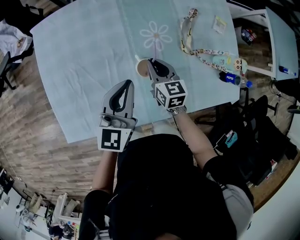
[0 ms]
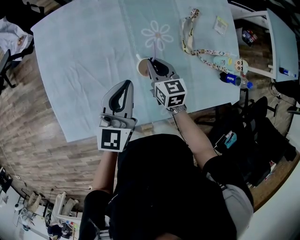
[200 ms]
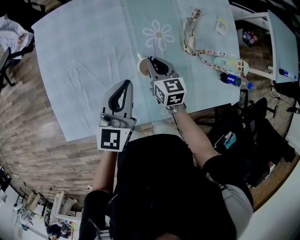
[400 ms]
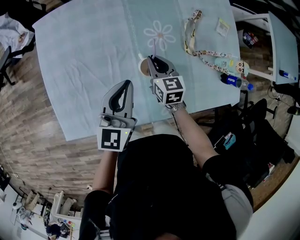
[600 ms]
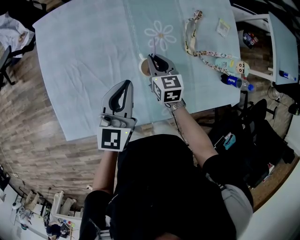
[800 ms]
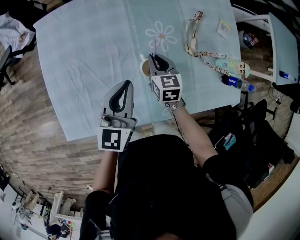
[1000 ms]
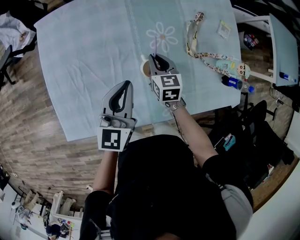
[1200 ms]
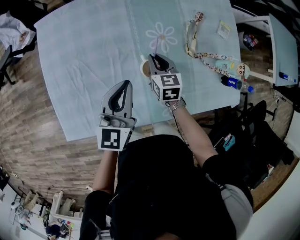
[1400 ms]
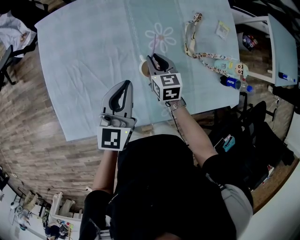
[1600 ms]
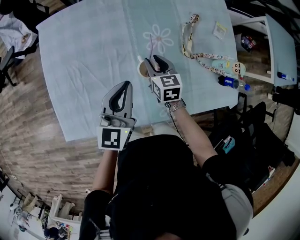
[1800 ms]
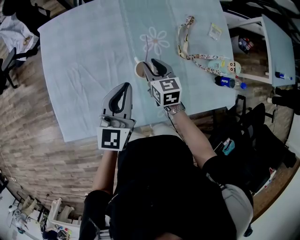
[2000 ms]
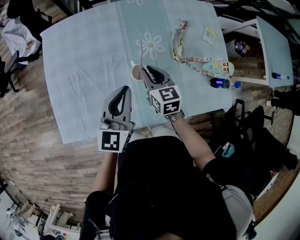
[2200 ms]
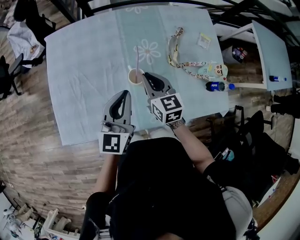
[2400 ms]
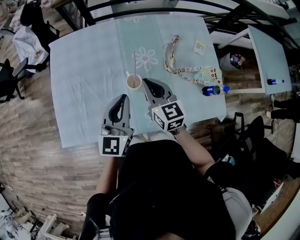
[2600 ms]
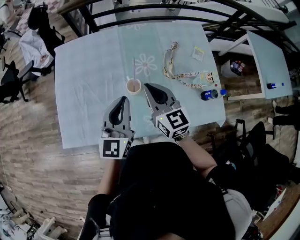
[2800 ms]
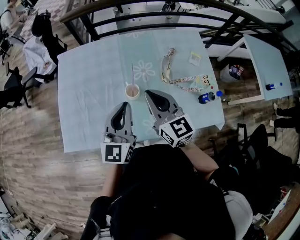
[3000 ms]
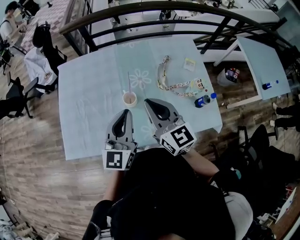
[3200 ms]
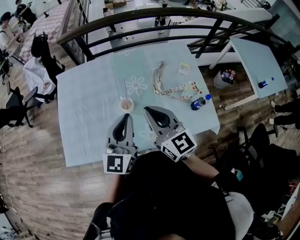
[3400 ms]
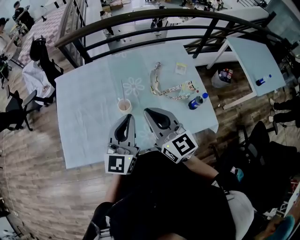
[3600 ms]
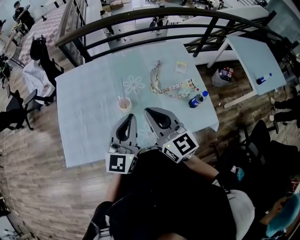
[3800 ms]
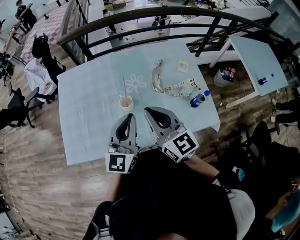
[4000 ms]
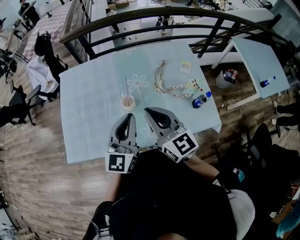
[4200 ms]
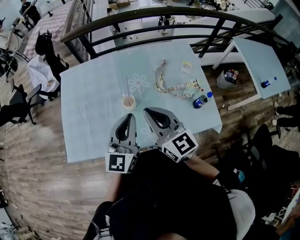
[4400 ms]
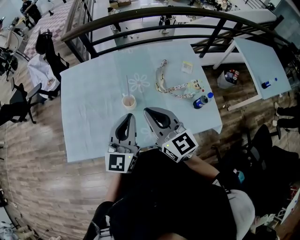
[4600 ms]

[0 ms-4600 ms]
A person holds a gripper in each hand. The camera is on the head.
0 ms to 1600 ms: The grippers make only small movements.
1600 ms to 3000 ms: The right gripper is displaced upward and backward by approximately 30 cm, and points its fingers about 30 degrees further upward; the left gripper travels upward, backward and to the right by approximately 20 cm.
3000 ms to 4600 ms: The right gripper travels backward by approximately 5 cm, while the left gripper changes place by about 5 cm.

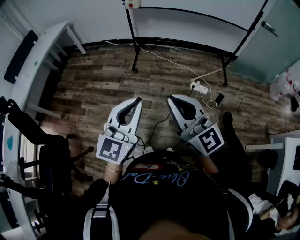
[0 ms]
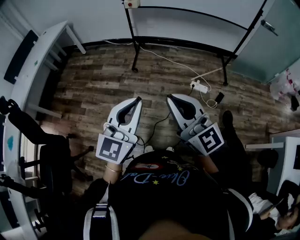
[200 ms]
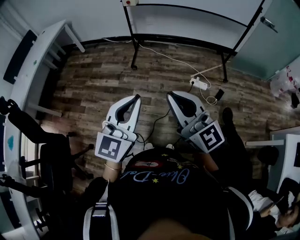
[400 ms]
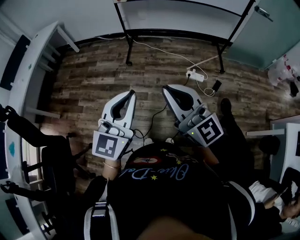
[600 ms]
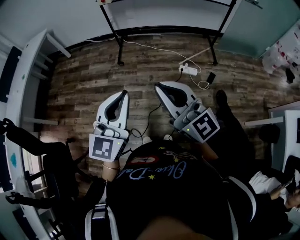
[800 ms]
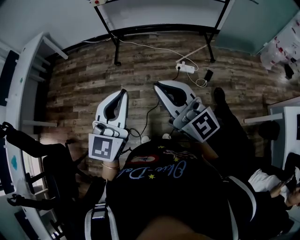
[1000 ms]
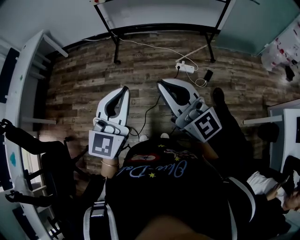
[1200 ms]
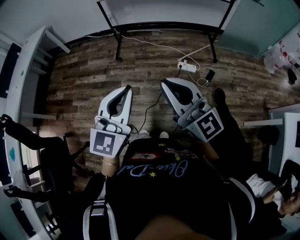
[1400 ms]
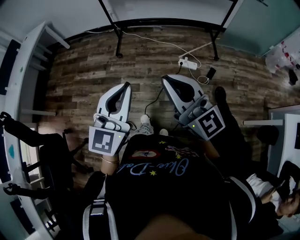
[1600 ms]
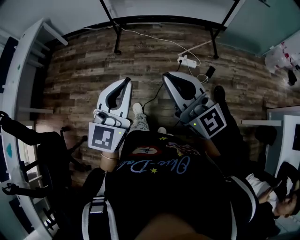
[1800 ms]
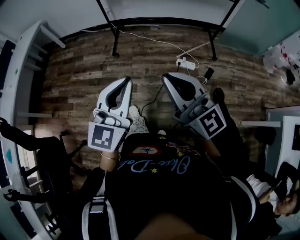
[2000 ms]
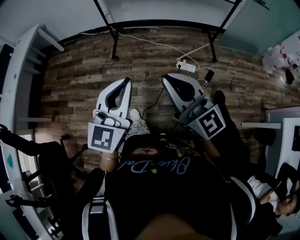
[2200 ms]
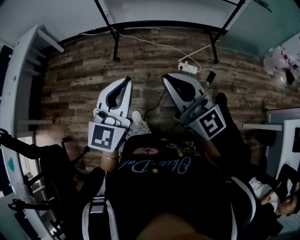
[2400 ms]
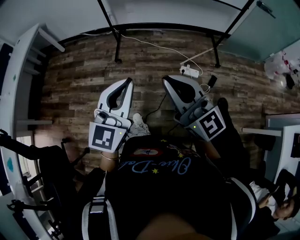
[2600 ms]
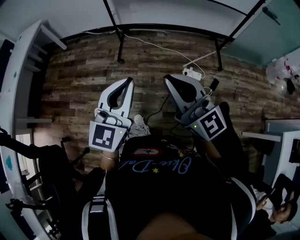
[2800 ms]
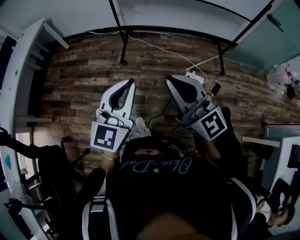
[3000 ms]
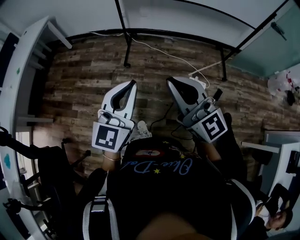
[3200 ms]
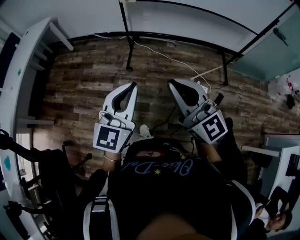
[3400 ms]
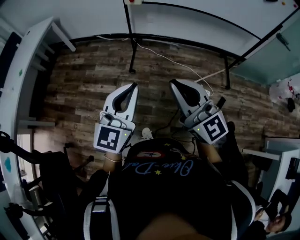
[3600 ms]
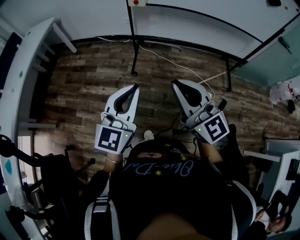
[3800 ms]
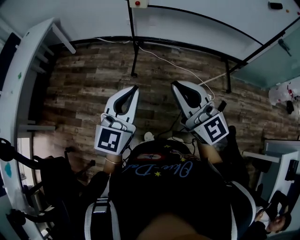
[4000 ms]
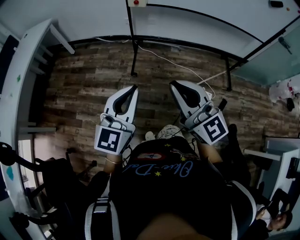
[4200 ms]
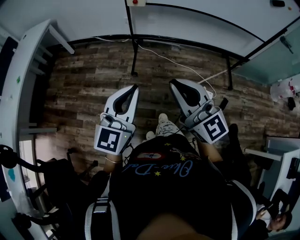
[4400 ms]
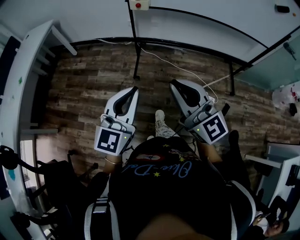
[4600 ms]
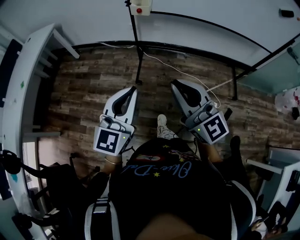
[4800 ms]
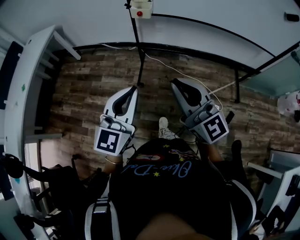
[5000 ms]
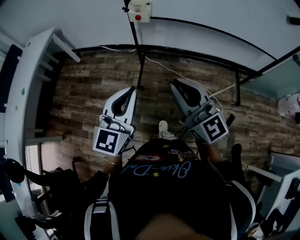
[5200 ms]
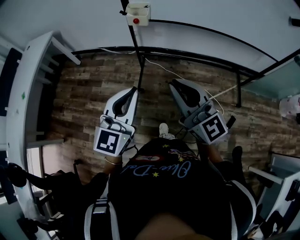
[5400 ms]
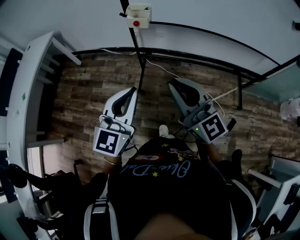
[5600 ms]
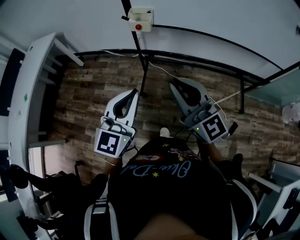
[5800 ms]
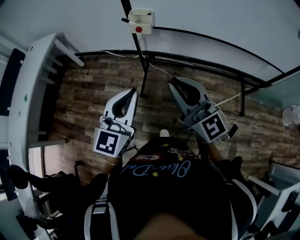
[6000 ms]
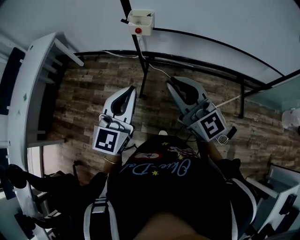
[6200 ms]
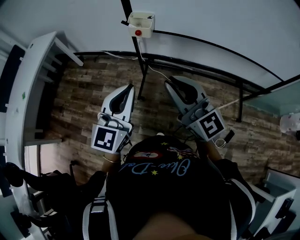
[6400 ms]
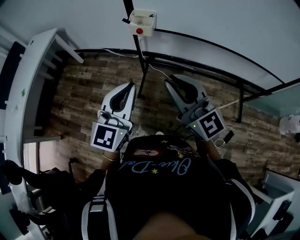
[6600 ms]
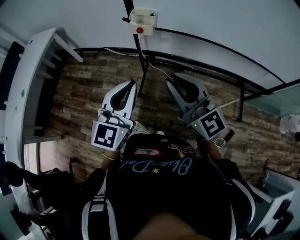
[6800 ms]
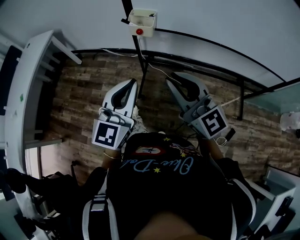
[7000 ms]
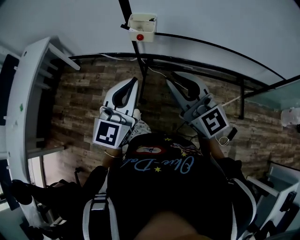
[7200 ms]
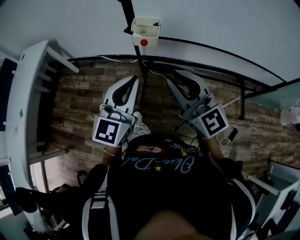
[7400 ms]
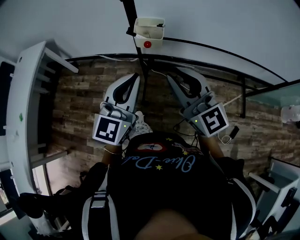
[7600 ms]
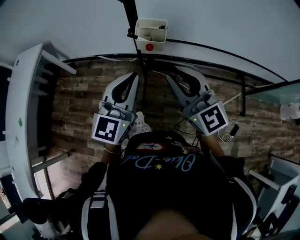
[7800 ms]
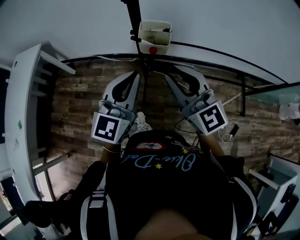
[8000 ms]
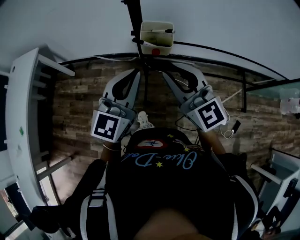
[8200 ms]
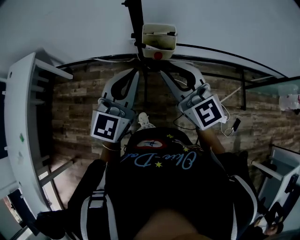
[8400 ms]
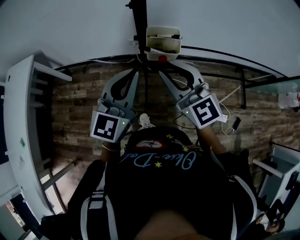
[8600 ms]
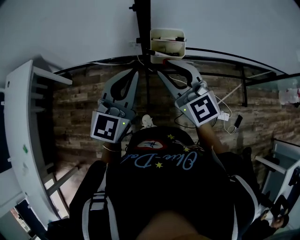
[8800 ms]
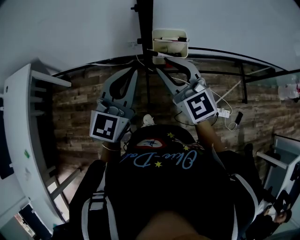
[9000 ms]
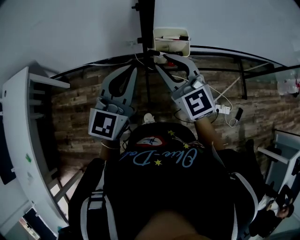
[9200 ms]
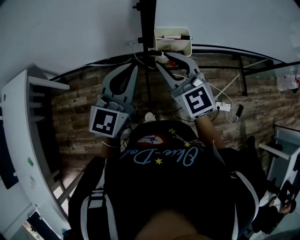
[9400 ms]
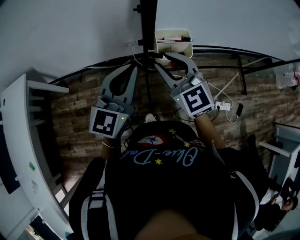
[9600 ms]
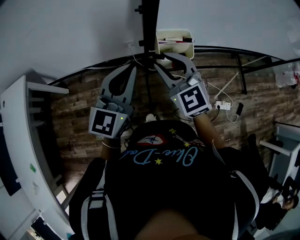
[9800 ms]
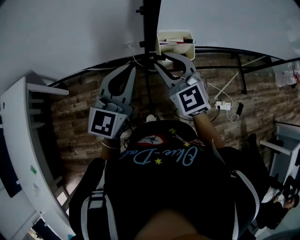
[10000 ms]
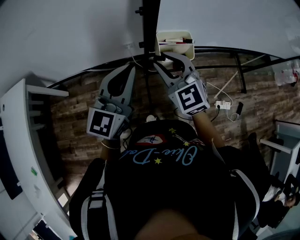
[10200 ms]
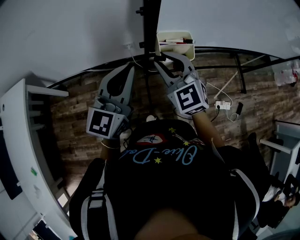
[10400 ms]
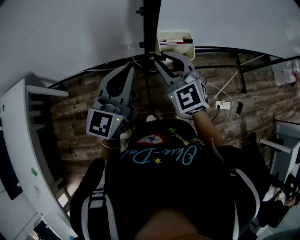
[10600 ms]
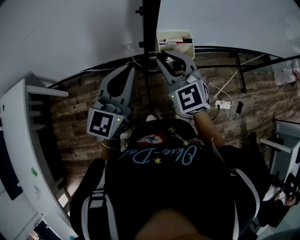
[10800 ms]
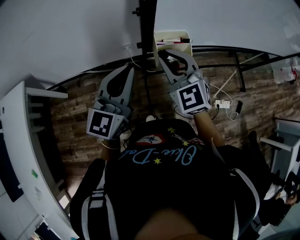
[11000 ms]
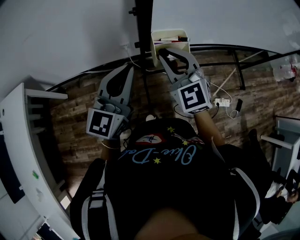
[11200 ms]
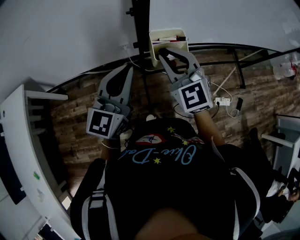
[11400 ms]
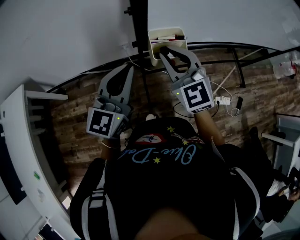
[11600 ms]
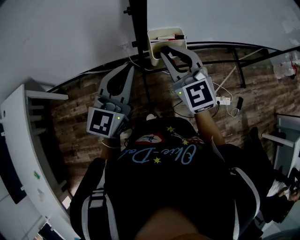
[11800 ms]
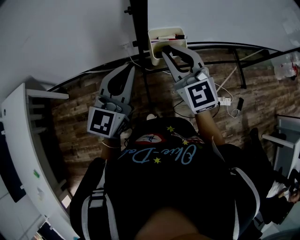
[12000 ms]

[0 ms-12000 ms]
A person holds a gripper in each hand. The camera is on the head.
0 ms to 1600 ms: The grippers both shift to the right by approximately 10 cm.
1600 ms to 3000 ms: The grippers both shift forward and to the left by approximately 20 cm.
3000 ms to 4400 ms: The two grippers go some 15 cm forward and to the left.
4400 ms to 6000 ms: The grippers both shift forward by about 20 cm.
6000 ms to 7600 ms: Both grippers travel together forward, roughly 15 cm.
7600 ms to 9000 ms: Both grippers travel together forward and to the left, some 15 cm. The right gripper rotates some 20 degrees.
9000 ms to 10400 ms: The left gripper changes place by roughly 5 cm; the right gripper goes roughly 5 cm forward.
10400 ms to 12000 ms: The right gripper changes place by about 5 cm.

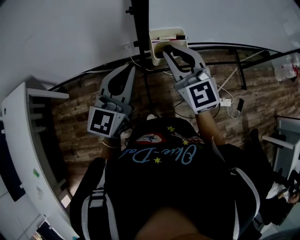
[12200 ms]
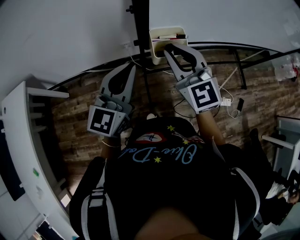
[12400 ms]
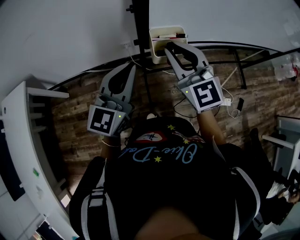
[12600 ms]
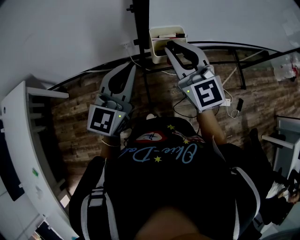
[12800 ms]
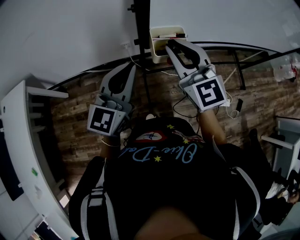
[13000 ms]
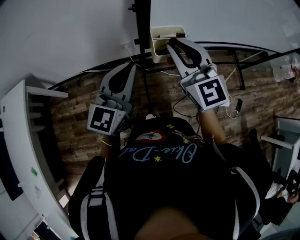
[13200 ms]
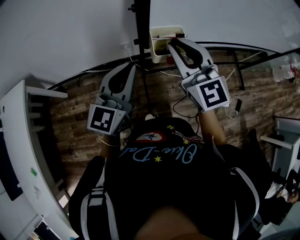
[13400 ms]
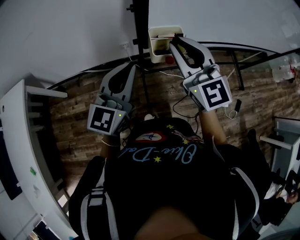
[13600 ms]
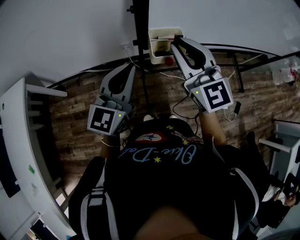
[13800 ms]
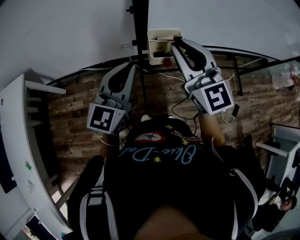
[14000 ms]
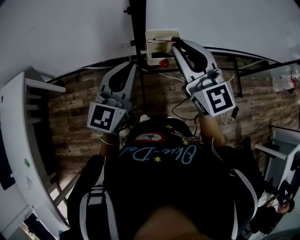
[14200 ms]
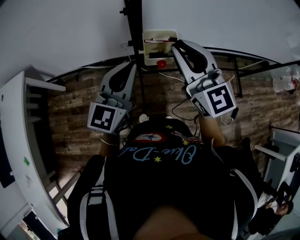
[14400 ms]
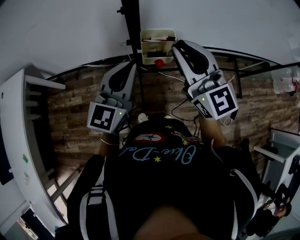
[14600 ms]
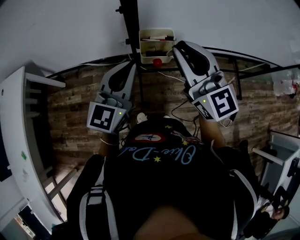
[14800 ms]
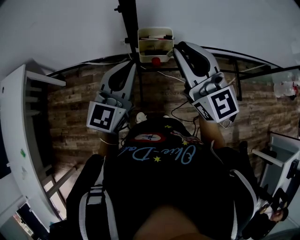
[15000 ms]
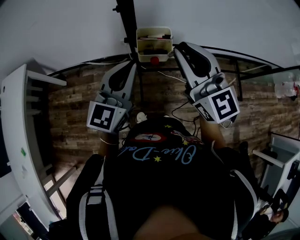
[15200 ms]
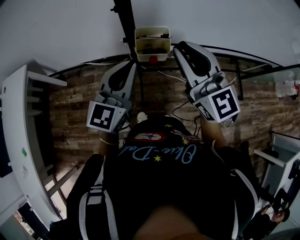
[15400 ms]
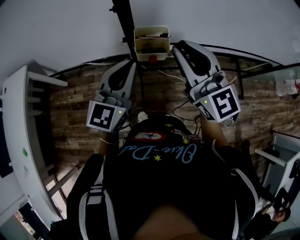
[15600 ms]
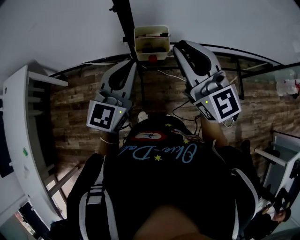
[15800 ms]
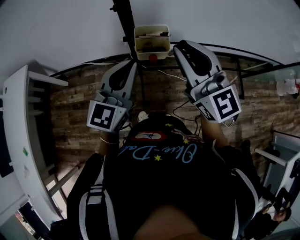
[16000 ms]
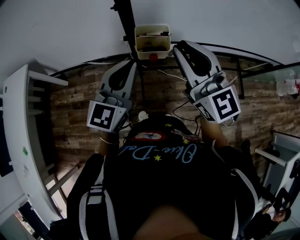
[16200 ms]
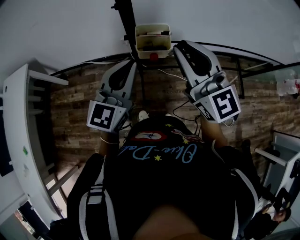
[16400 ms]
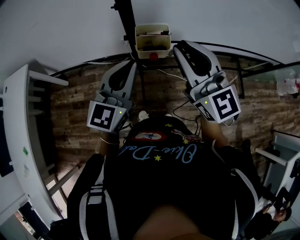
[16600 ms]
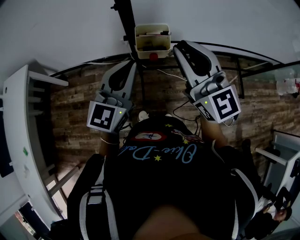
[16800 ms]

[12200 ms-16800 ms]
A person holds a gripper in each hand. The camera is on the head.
12200 ms to 13800 ms: The right gripper travels upward by some 5 cm.
13800 ms to 15200 ms: Both grippers move to the right, about 5 cm.
15200 ms to 16800 ms: The grippers make only small movements.

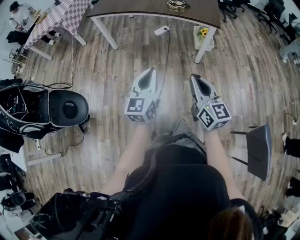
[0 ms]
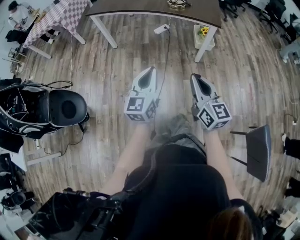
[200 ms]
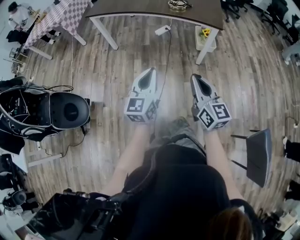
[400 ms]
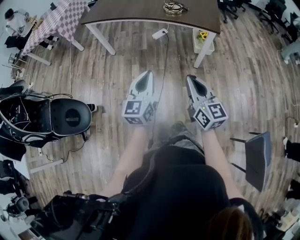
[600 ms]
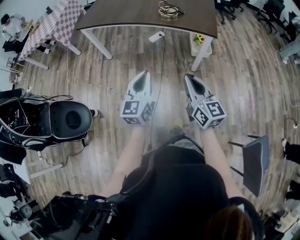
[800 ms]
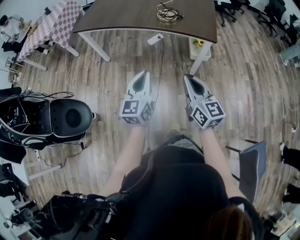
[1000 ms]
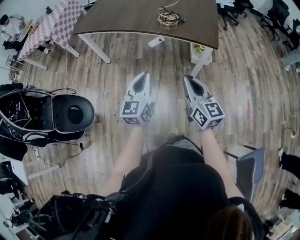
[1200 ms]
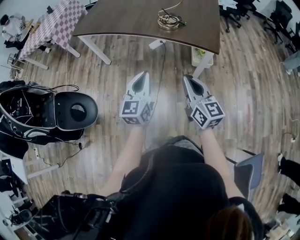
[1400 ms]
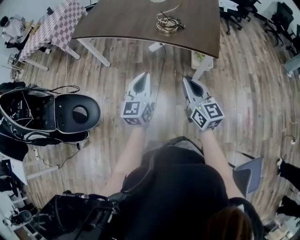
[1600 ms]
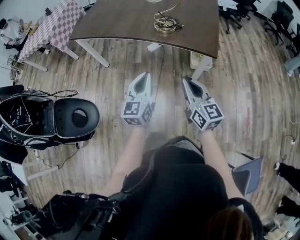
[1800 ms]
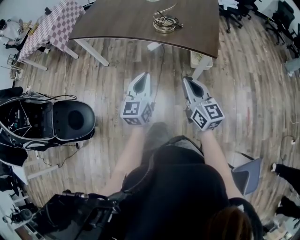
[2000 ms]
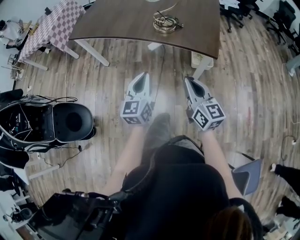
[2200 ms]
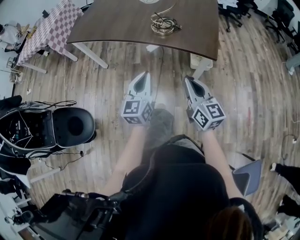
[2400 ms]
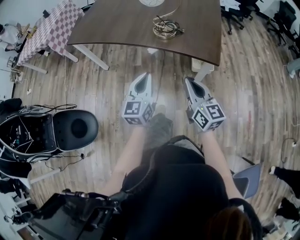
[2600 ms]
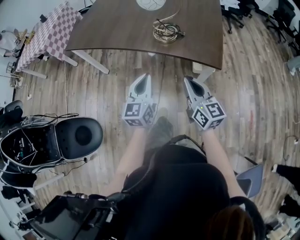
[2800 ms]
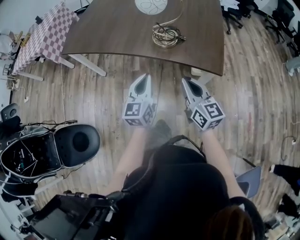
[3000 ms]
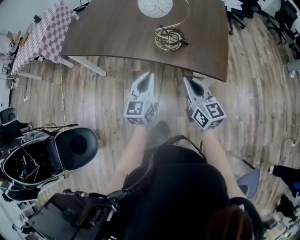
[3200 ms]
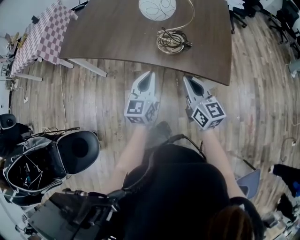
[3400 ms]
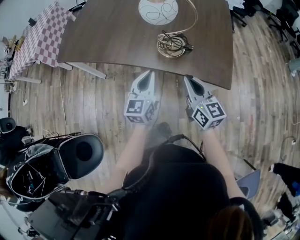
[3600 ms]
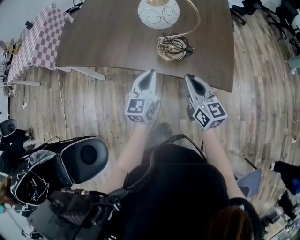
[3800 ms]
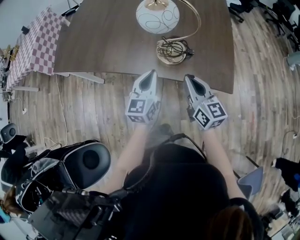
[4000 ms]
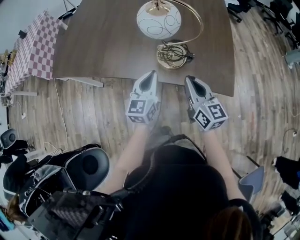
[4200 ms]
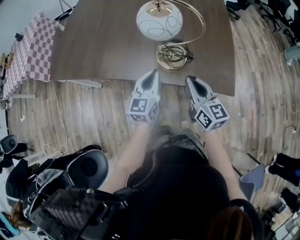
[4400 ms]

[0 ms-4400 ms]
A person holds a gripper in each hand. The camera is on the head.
0 ms to 1400 ms: Both grippers move forward, roughly 25 cm.
1400 ms to 3000 ms: The grippers both shift forward by approximately 20 cm.
3000 ms to 4400 ms: Both grippers travel together forward, approximately 15 cm.
